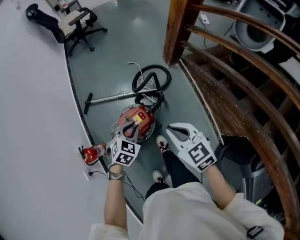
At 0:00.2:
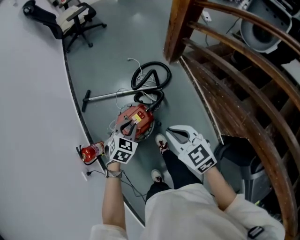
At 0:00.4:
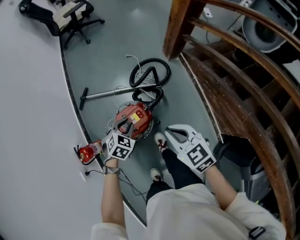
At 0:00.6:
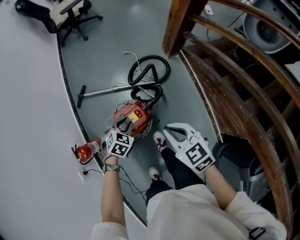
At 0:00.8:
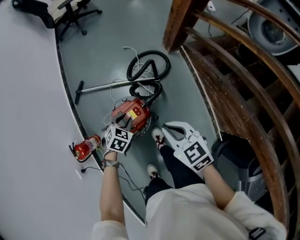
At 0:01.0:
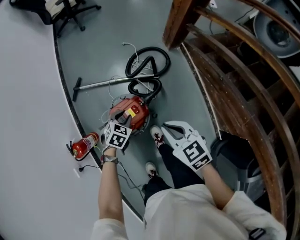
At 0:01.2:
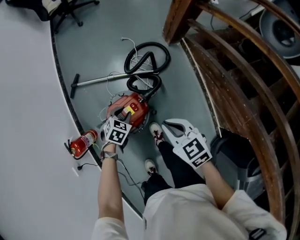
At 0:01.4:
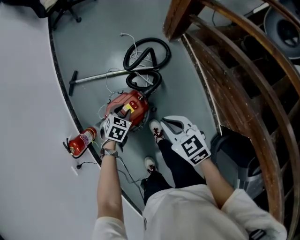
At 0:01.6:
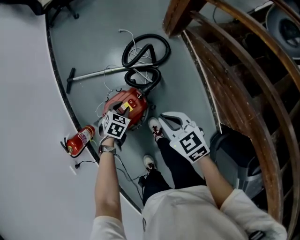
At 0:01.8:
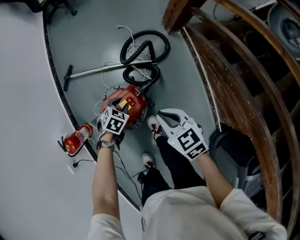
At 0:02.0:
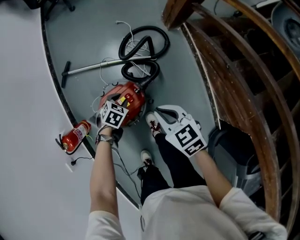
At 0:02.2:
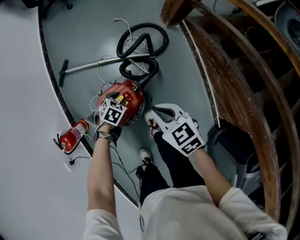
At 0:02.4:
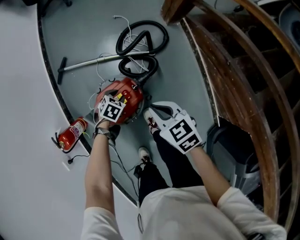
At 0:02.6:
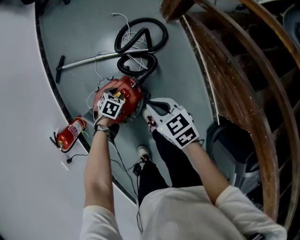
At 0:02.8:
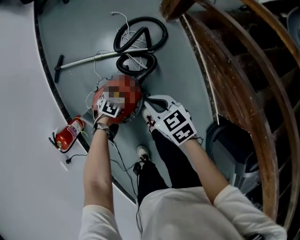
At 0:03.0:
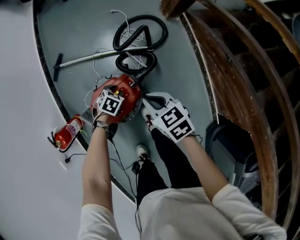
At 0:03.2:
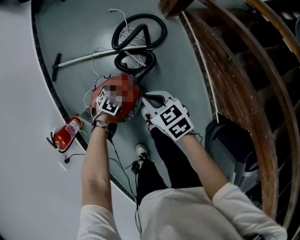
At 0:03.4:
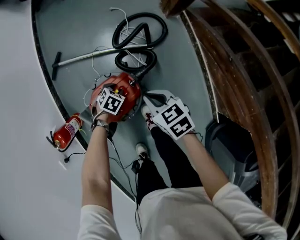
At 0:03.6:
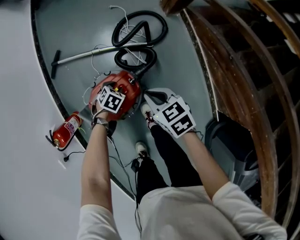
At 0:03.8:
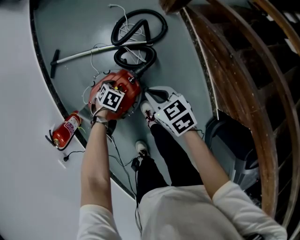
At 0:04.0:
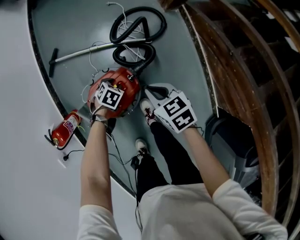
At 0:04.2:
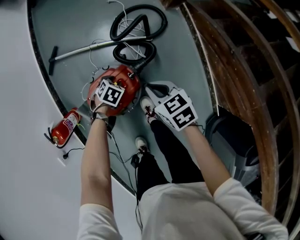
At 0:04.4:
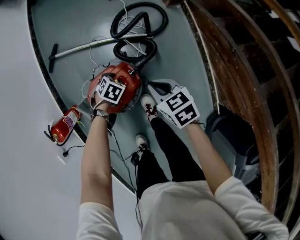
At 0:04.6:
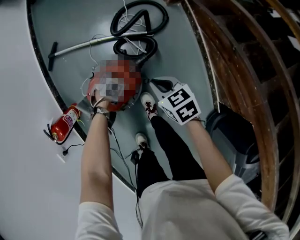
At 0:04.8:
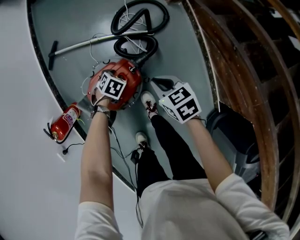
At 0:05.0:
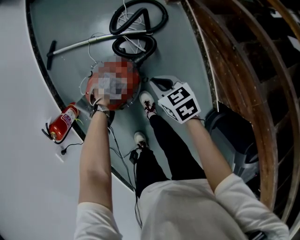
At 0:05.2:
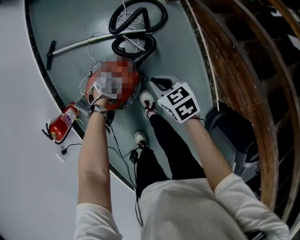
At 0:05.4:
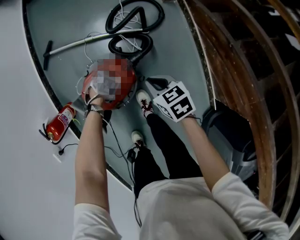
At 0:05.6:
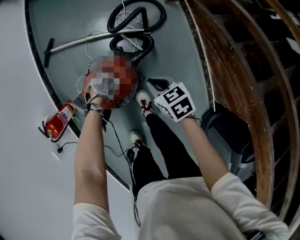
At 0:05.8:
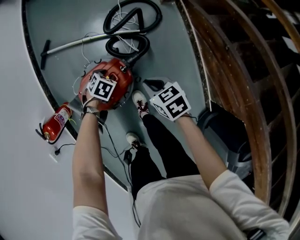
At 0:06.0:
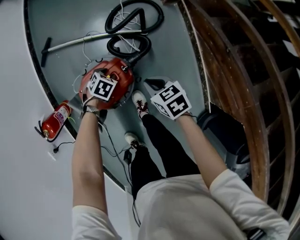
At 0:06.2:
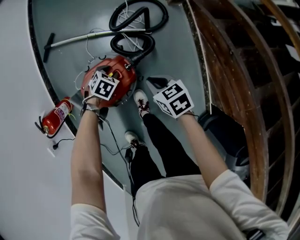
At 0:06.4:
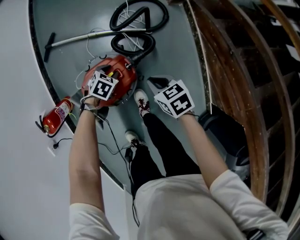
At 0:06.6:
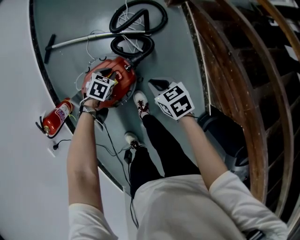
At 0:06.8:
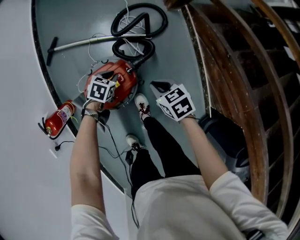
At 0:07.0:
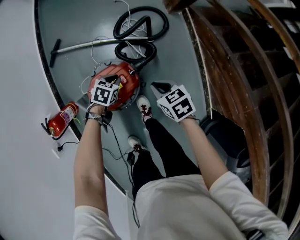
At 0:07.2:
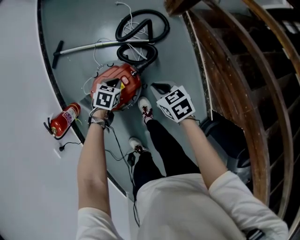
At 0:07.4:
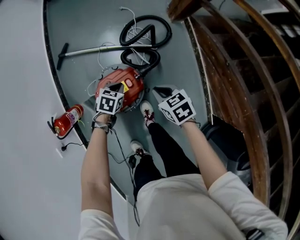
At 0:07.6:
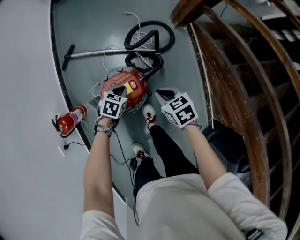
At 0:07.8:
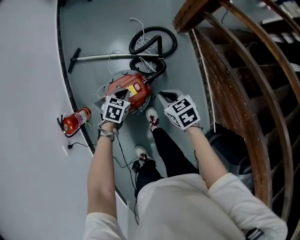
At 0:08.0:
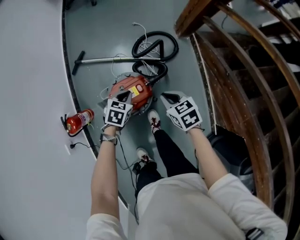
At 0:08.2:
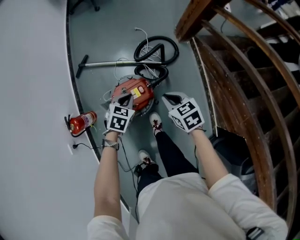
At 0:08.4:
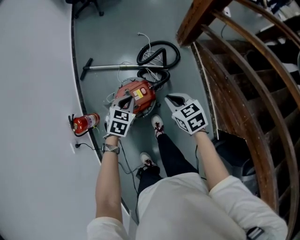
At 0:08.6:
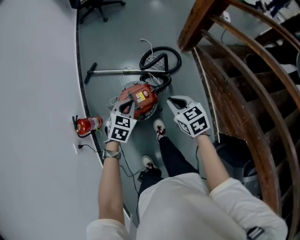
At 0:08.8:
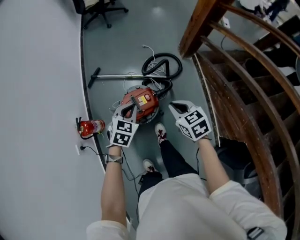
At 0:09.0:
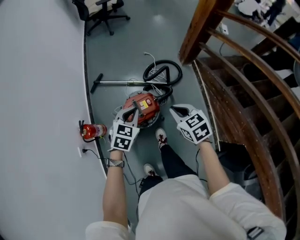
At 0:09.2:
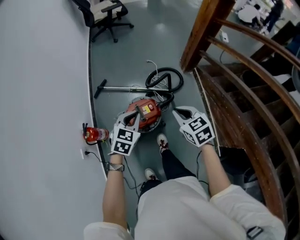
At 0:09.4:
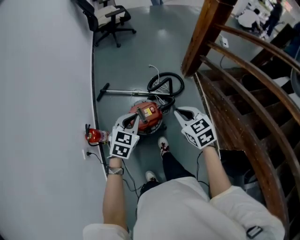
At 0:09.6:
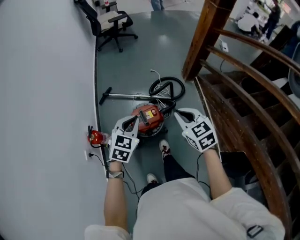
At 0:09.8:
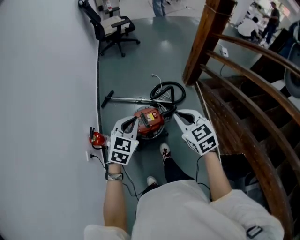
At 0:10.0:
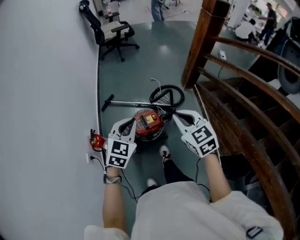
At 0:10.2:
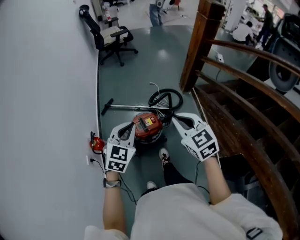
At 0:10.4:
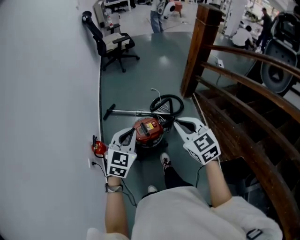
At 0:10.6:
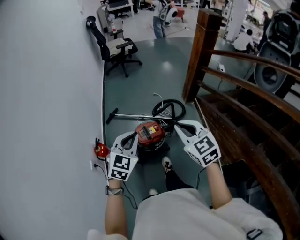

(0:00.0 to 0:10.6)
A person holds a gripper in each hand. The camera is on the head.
0:00.0 - 0:01.6: The left gripper goes about 25 cm downward. Meanwhile the right gripper is displaced downward and forward by roughly 20 cm.
0:01.6 - 0:03.0: The grippers both shift downward by roughly 10 cm.
0:03.0 - 0:04.6: The right gripper changes place by some 5 cm.
0:04.6 - 0:06.0: The grippers stay close to where they were, moving slightly.
0:06.0 - 0:07.6: Both grippers move upward, some 10 cm. The left gripper closes.
0:07.6 - 0:09.0: Both grippers move upward, roughly 25 cm. The left gripper turns by approximately 30 degrees.
0:09.0 - 0:10.6: The grippers both shift upward and backward by about 25 cm. The right gripper swivels some 30 degrees. Meanwhile the left gripper turns by approximately 20 degrees.

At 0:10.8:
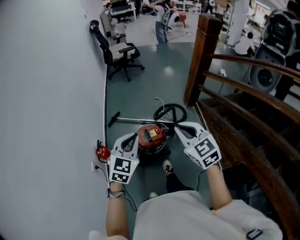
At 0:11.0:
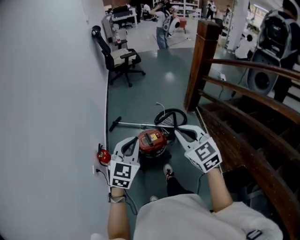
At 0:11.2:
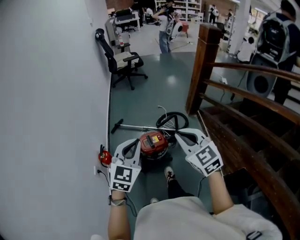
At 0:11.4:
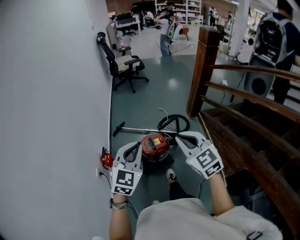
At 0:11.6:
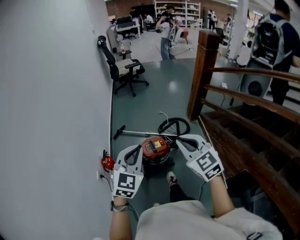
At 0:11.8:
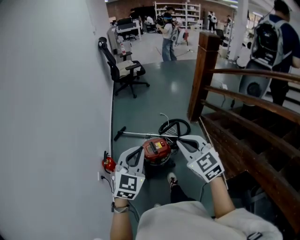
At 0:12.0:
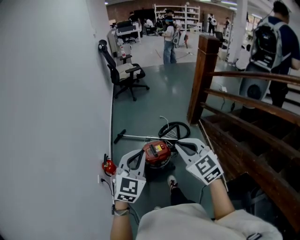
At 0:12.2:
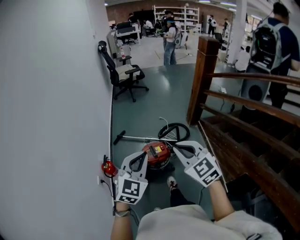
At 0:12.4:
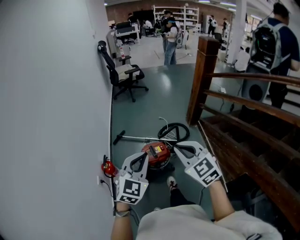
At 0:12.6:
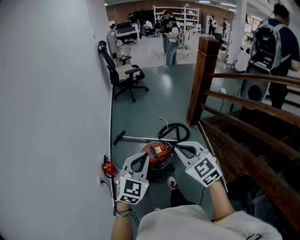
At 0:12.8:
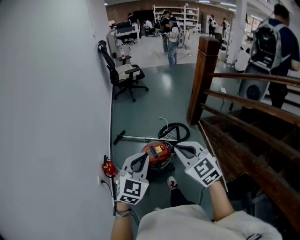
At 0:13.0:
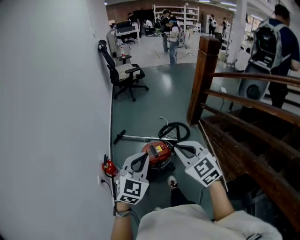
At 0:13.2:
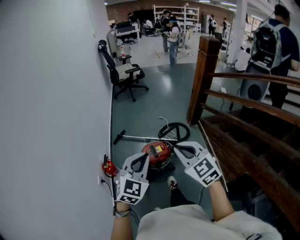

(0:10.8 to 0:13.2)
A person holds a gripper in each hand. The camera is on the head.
0:10.8 - 0:12.0: The left gripper moves backward and upward, about 10 cm. The right gripper heads backward, covering some 5 cm.
0:12.0 - 0:13.2: There are only small adjustments of the grippers.

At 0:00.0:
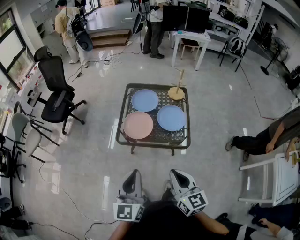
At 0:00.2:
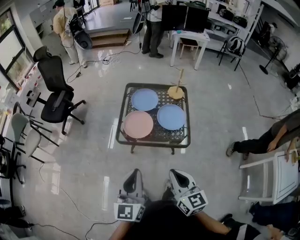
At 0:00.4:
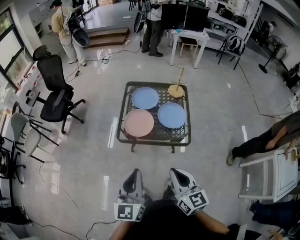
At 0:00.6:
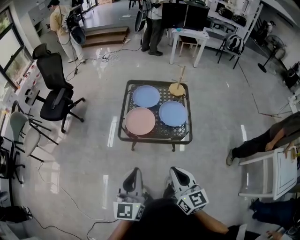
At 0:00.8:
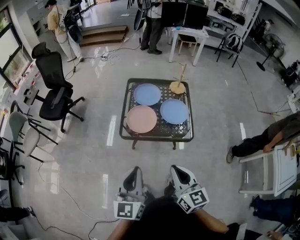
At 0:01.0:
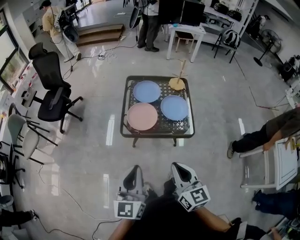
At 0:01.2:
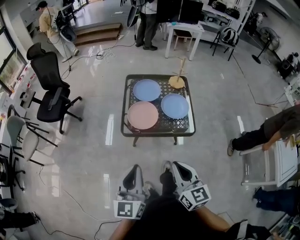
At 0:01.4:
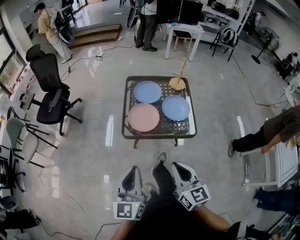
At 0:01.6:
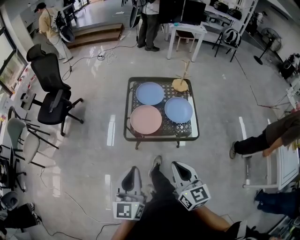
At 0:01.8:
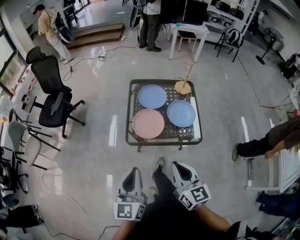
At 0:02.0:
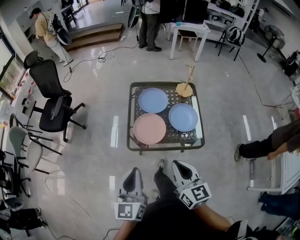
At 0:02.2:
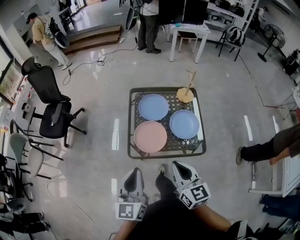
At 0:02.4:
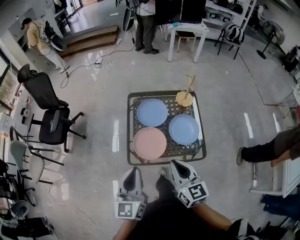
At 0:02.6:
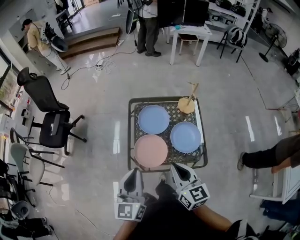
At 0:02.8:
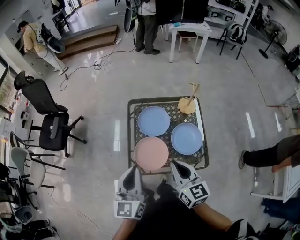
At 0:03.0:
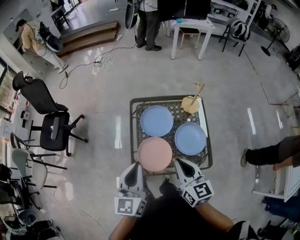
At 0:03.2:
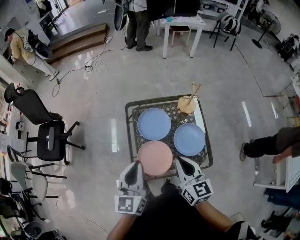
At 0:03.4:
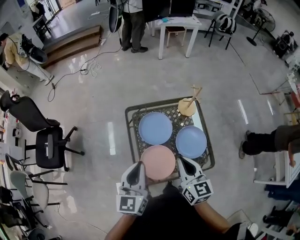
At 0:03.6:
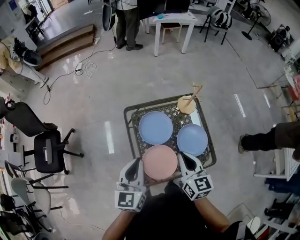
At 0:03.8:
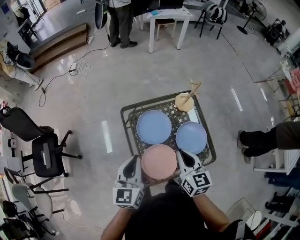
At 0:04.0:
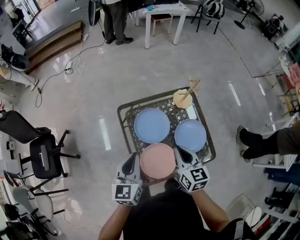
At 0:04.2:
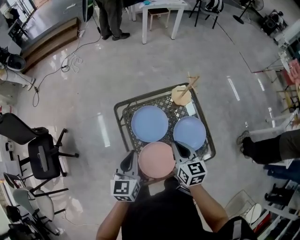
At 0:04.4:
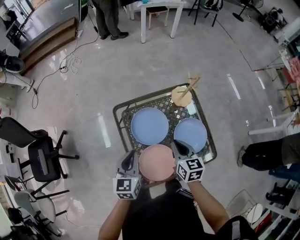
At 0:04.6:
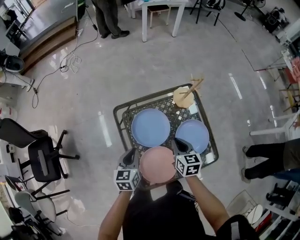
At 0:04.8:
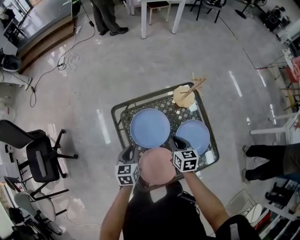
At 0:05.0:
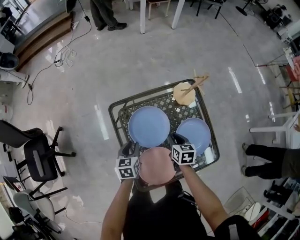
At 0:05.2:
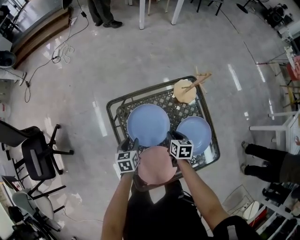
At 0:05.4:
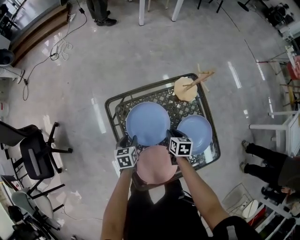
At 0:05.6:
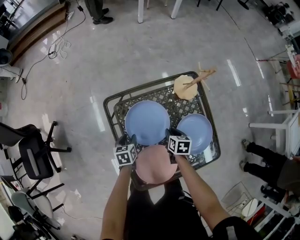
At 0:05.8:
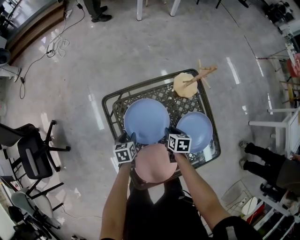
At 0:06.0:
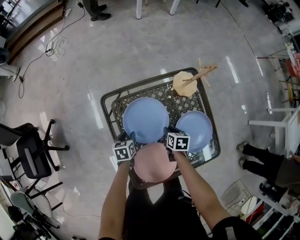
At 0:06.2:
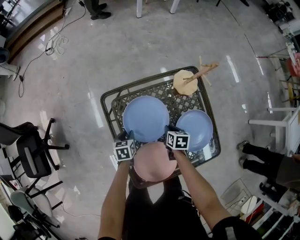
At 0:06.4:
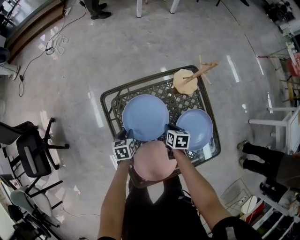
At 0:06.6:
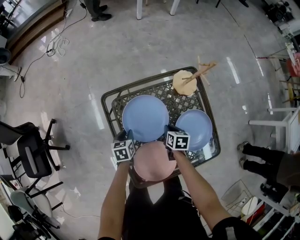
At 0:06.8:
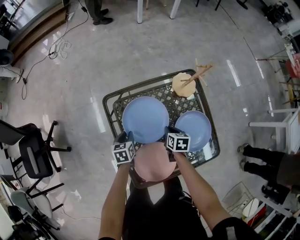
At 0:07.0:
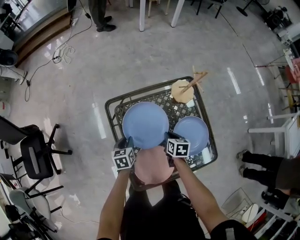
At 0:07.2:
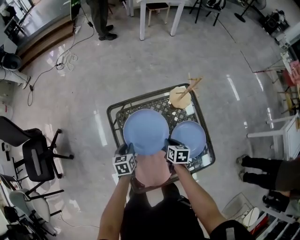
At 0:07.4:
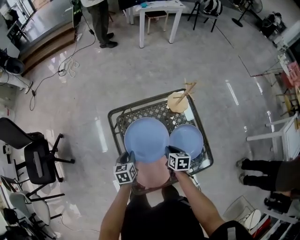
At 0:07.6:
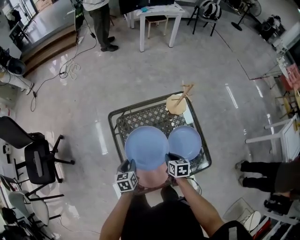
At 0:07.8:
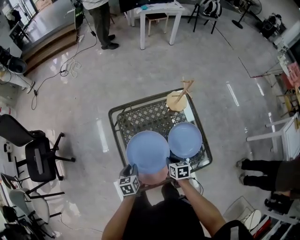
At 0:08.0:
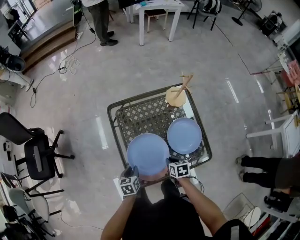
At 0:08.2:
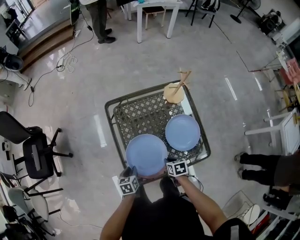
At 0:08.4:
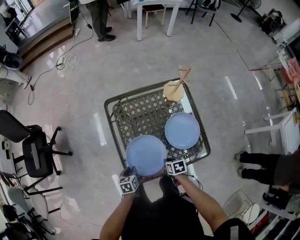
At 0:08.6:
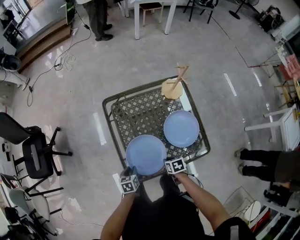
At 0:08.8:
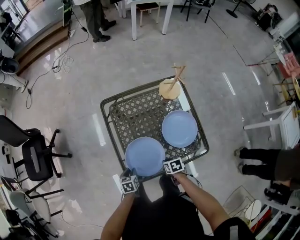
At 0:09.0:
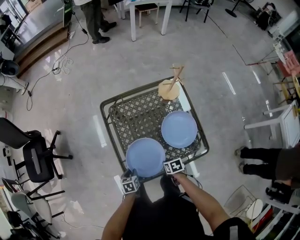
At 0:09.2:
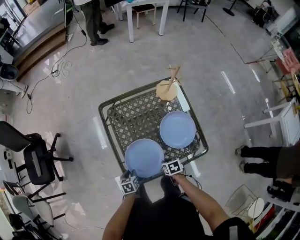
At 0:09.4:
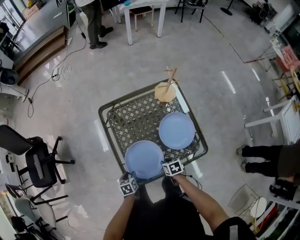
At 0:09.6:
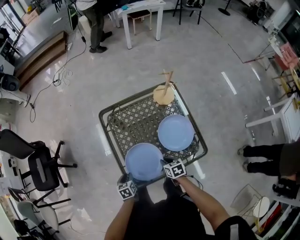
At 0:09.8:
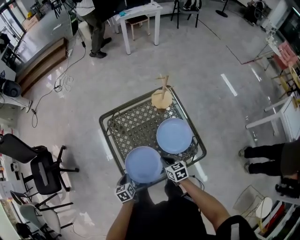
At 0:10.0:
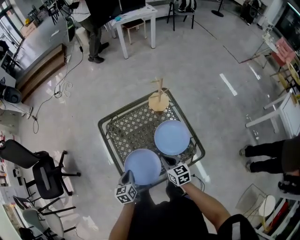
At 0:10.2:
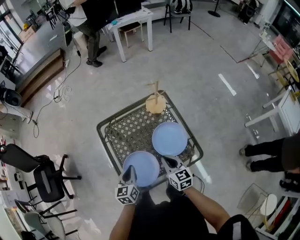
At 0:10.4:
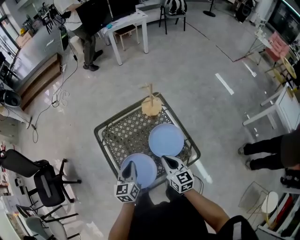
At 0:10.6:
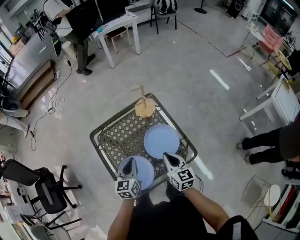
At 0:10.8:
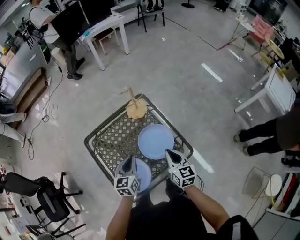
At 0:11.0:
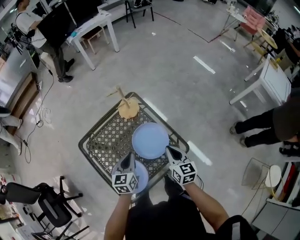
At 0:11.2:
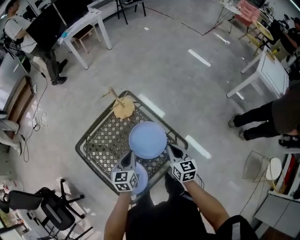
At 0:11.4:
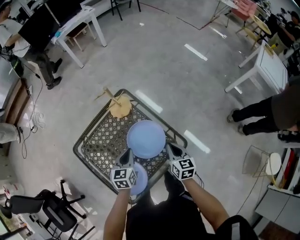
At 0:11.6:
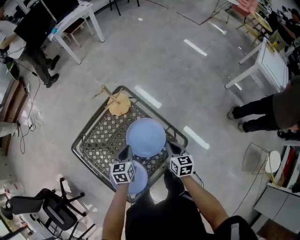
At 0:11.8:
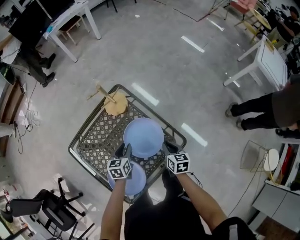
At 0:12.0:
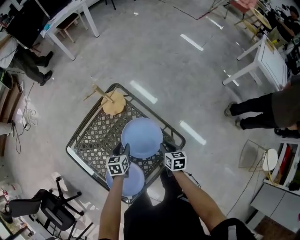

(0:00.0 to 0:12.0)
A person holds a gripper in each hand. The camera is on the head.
0:00.0 - 0:01.6: Both grippers move to the left, roughly 10 cm.
0:01.6 - 0:03.0: Both grippers move forward, about 35 cm.
0:03.0 - 0:04.4: The grippers both shift forward and downward by approximately 25 cm. The left gripper turns by some 30 degrees; the right gripper turns by roughly 30 degrees.
0:04.4 - 0:06.0: The grippers both shift downward by approximately 30 cm. The right gripper rotates approximately 30 degrees, and opens. The left gripper rotates some 30 degrees, and opens.
0:06.0 - 0:07.6: Both grippers travel together upward and backward, about 15 cm.
0:07.6 - 0:09.0: Both grippers travel together backward and downward, about 20 cm. The right gripper changes its angle by approximately 20 degrees.
0:09.0 - 0:10.4: The right gripper shifts approximately 25 cm upward, and tilts its fingers about 50 degrees upward; the left gripper travels upward, to the right and forward by some 30 cm, tilts its fingers approximately 40 degrees upward, and closes.
0:10.4 - 0:12.0: The two grippers go about 20 cm downward. The right gripper changes its angle by roughly 40 degrees; the left gripper rotates some 40 degrees, and opens its fingers.
